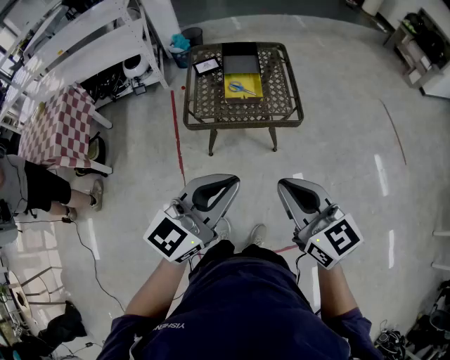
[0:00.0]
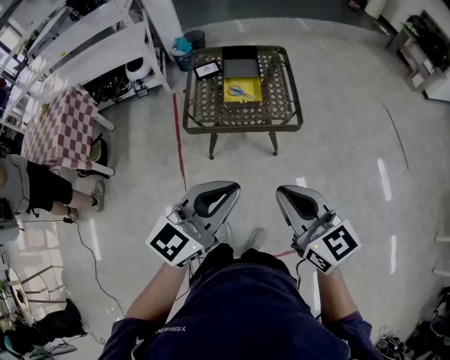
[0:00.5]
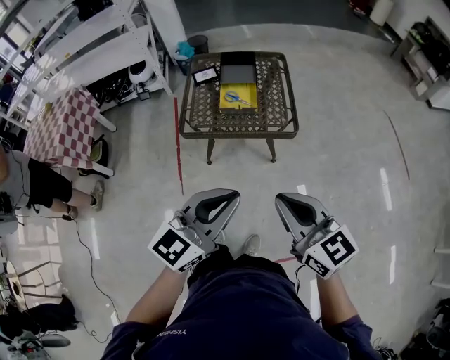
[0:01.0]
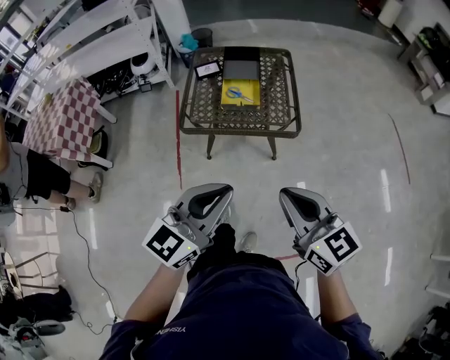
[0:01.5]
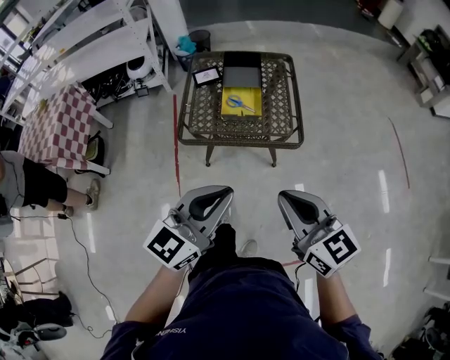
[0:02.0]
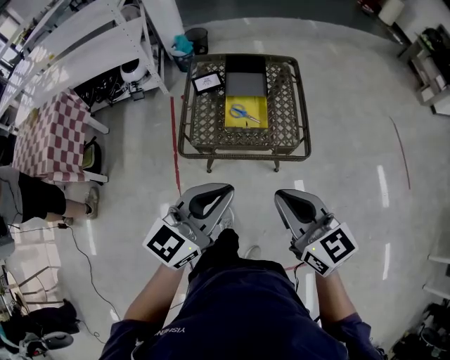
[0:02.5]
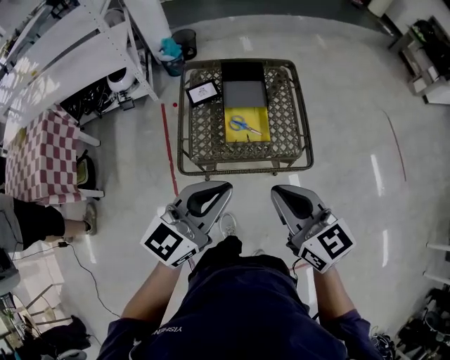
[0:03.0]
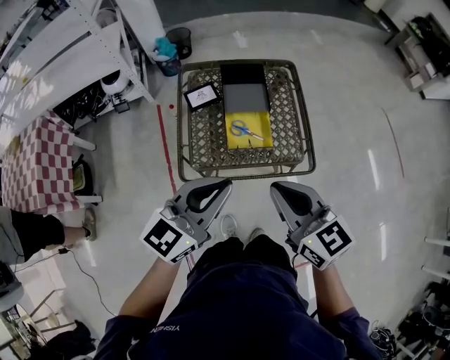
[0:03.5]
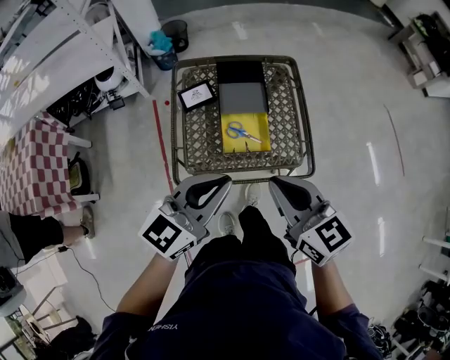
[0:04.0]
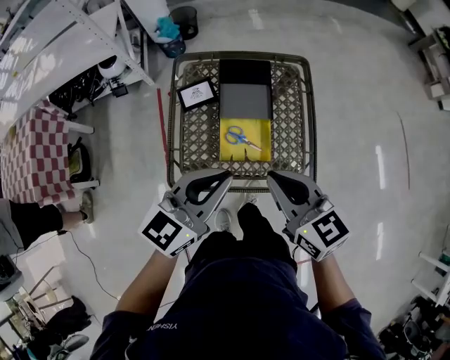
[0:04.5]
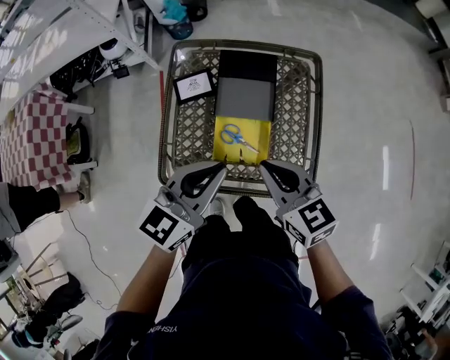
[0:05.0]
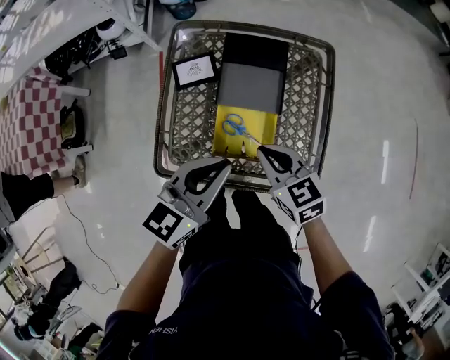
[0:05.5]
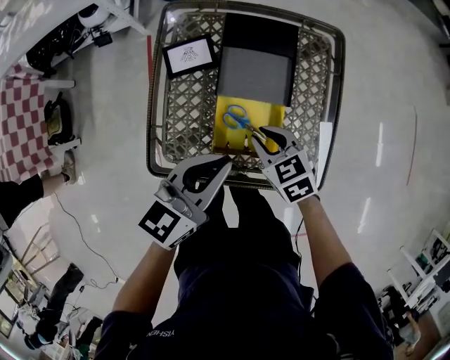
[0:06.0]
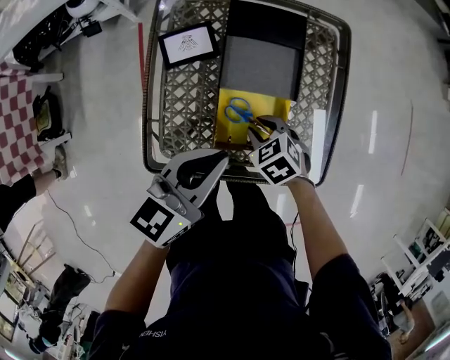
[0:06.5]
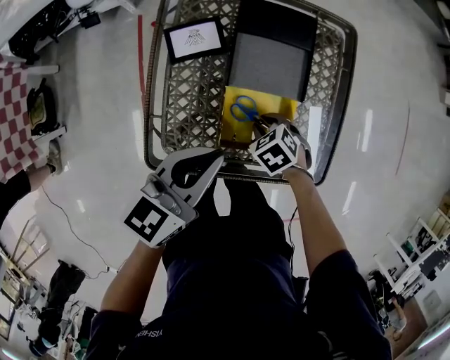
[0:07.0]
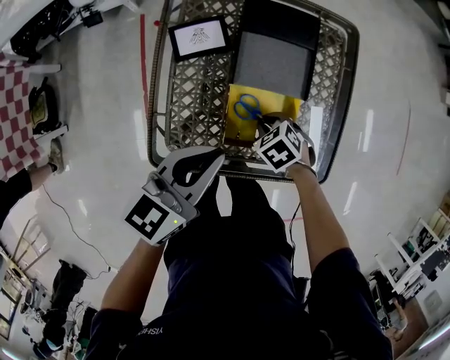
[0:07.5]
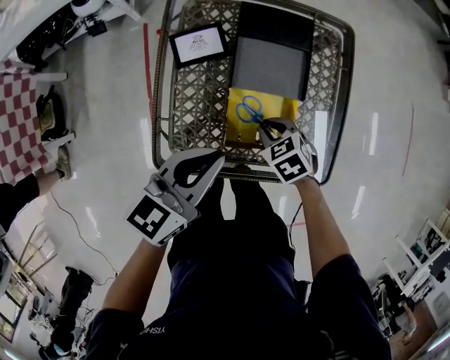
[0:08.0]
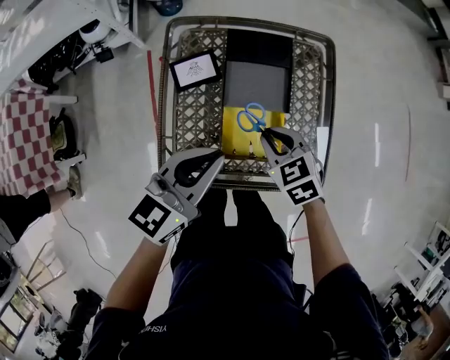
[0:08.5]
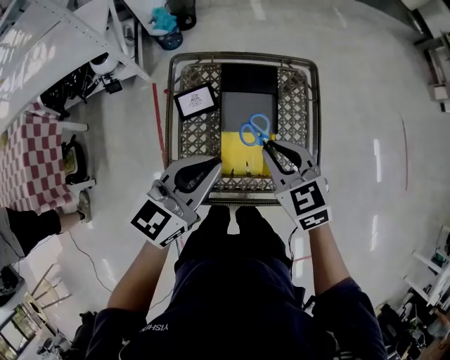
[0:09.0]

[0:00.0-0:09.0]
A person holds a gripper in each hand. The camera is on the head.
0:00.0 to 0:02.0: The left gripper travels forward by some 10 cm. The right gripper shifts approximately 10 cm forward and to the right.
0:02.0 to 0:04.5: The grippers both shift forward by roughly 35 cm.
0:04.5 to 0:07.0: The right gripper heads downward, covering approximately 40 cm, tilts its fingers about 60 degrees downward, and opens; the left gripper goes roughly 20 cm downward.
0:07.0 to 0:09.0: The right gripper travels upward by roughly 30 cm, and points its fingers some 40 degrees further upward. The left gripper shifts roughly 15 cm upward.

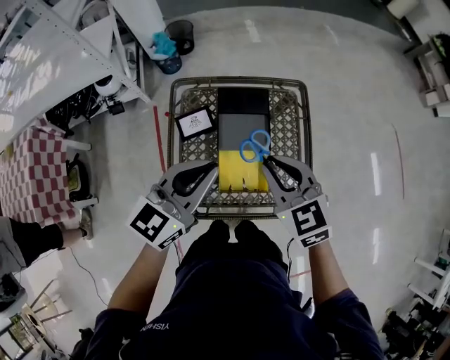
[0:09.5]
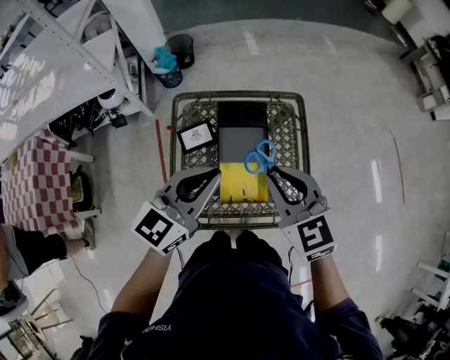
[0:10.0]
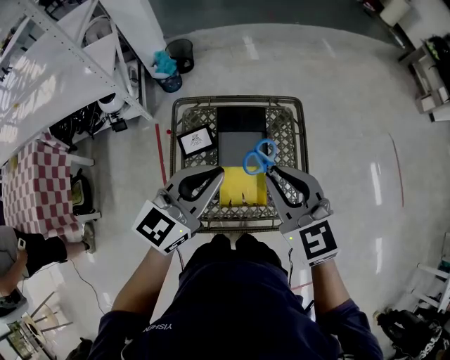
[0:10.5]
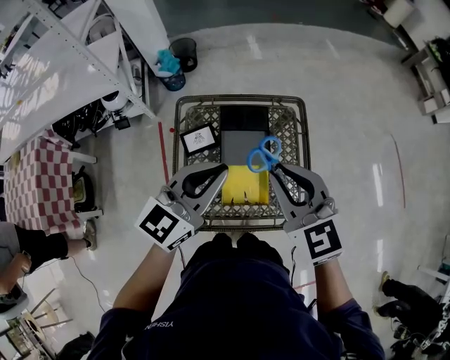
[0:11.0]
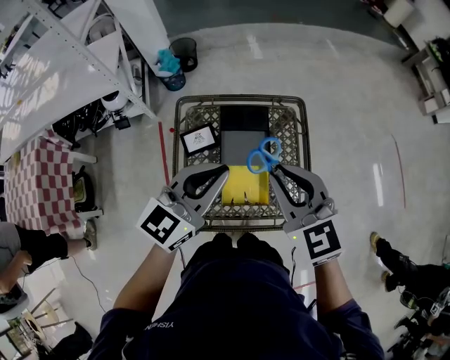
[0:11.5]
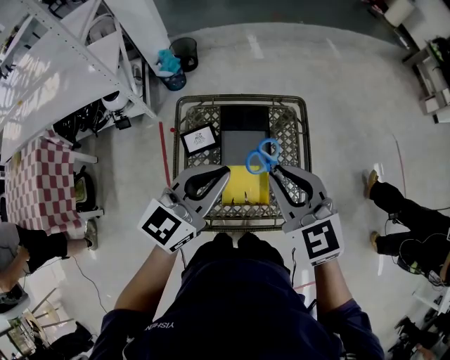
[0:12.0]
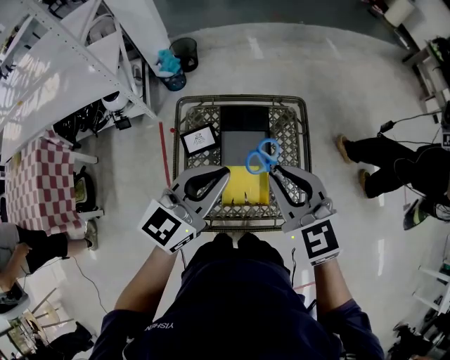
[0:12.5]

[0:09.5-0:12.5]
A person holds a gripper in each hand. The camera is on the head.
0:09.5 to 0:11.0: The right gripper goes approximately 10 cm upward.
0:11.0 to 0:12.5: Neither gripper changes place.

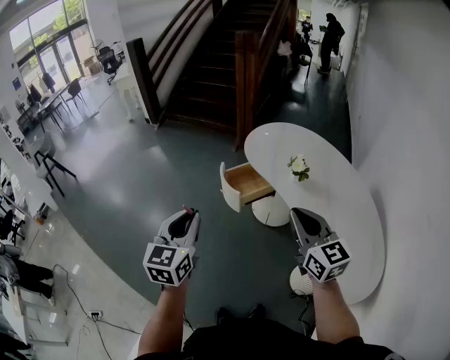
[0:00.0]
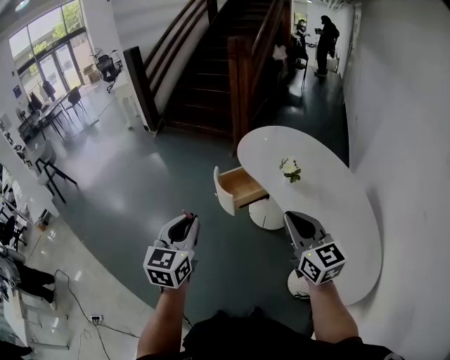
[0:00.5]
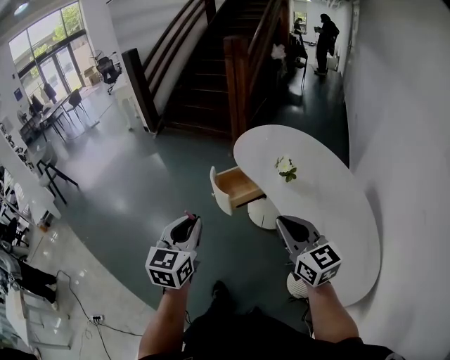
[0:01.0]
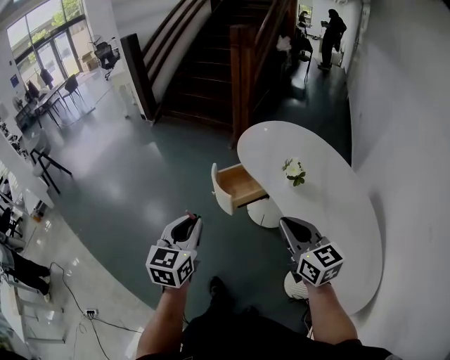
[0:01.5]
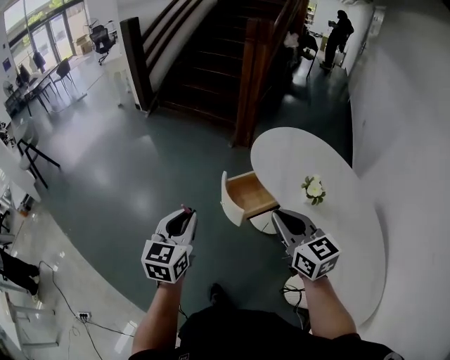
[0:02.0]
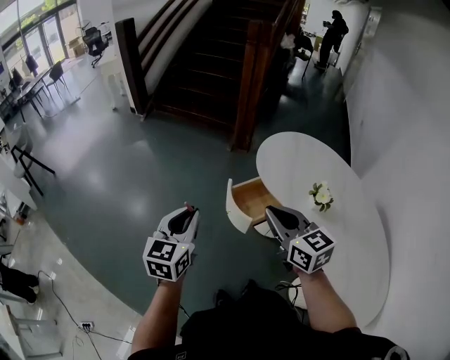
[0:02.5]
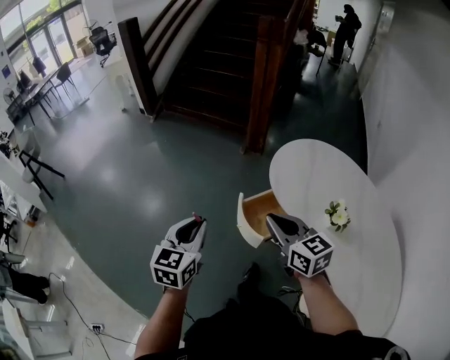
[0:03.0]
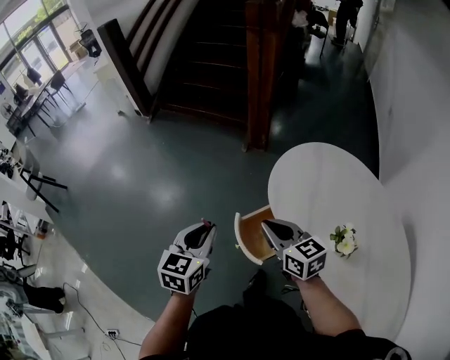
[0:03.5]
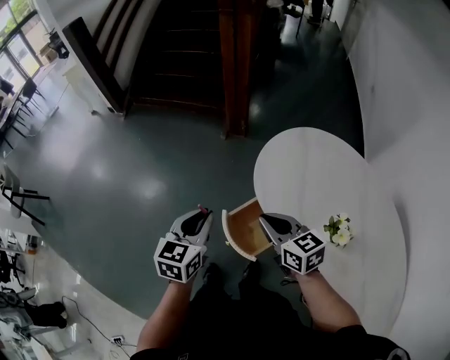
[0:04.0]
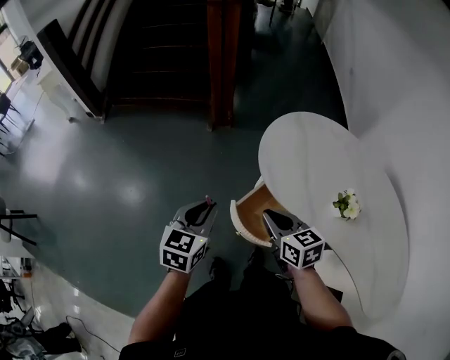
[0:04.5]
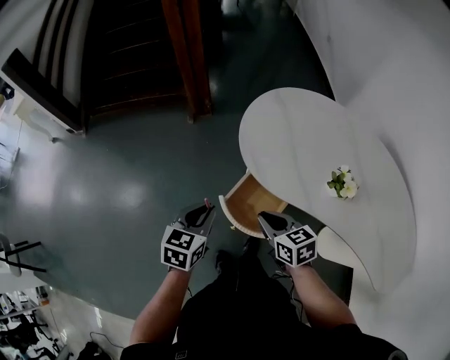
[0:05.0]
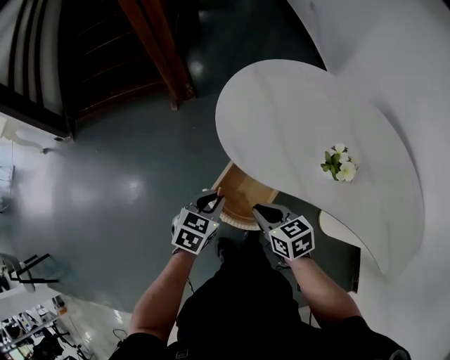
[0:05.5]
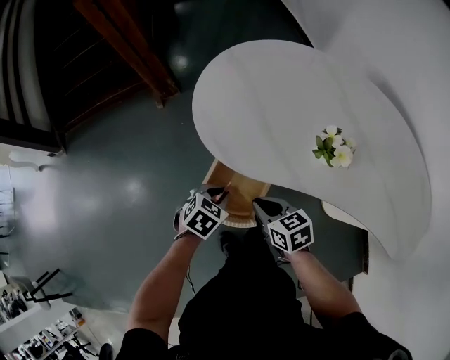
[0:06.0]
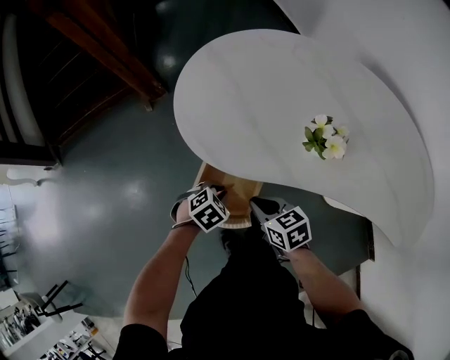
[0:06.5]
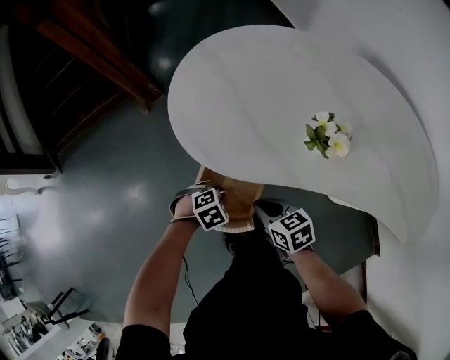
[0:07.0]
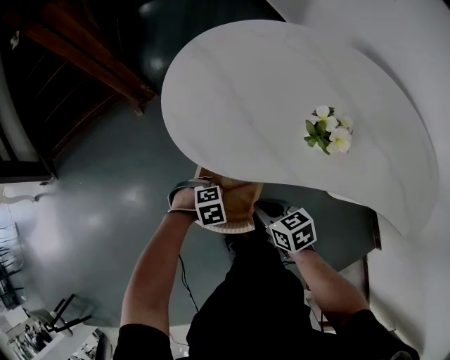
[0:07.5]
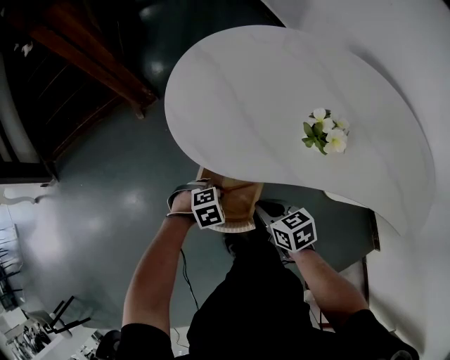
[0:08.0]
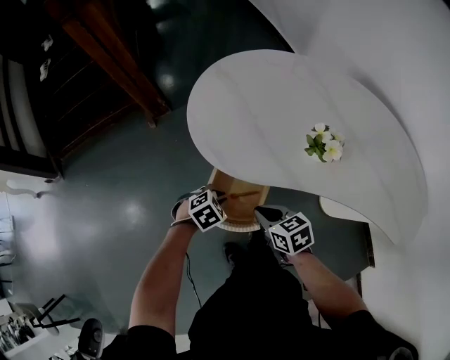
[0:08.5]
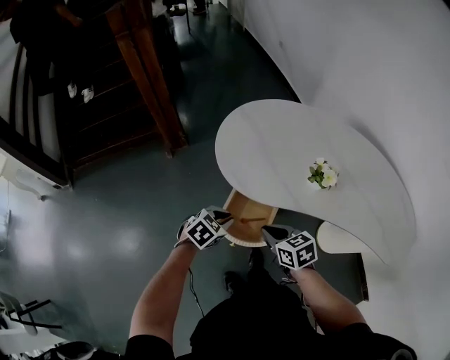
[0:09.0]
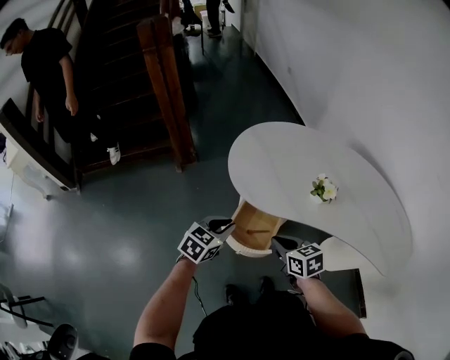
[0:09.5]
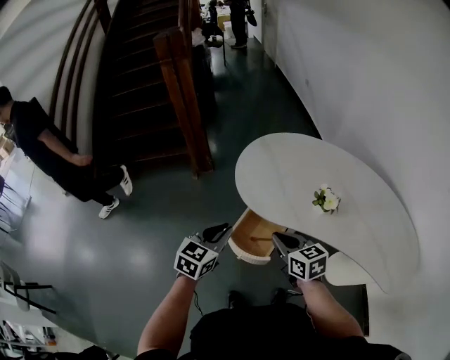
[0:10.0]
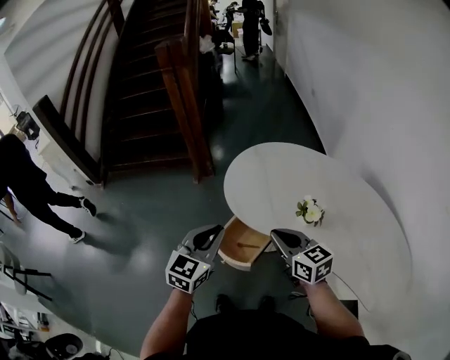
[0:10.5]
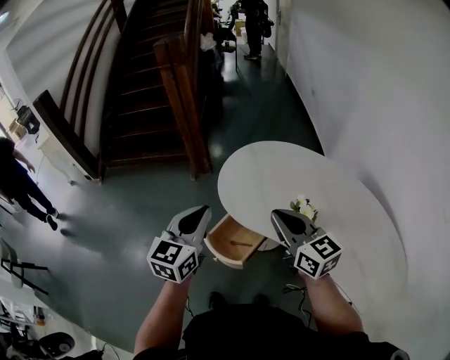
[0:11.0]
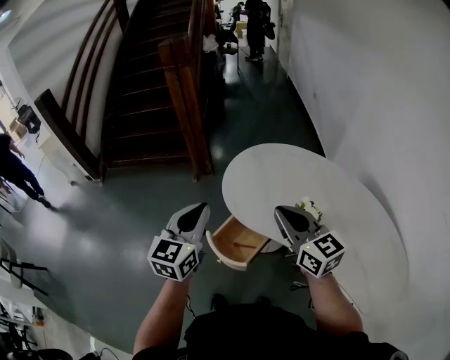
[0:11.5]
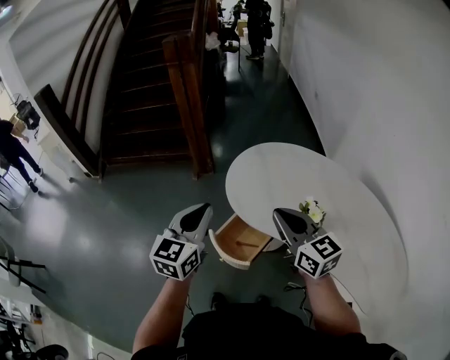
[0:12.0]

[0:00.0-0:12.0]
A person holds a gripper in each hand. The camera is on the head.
0:00.0 to 0:02.0: The left gripper goes roughly 15 cm forward, while the right gripper is displaced forward and to the left by about 20 cm.
0:02.0 to 0:04.0: The right gripper shifts roughly 30 cm forward and downward. The left gripper moves forward, about 30 cm.
0:04.0 to 0:06.0: Both grippers move downward, about 25 cm. The right gripper turns by approximately 30 degrees. Meanwhile the left gripper points its fingers about 30 degrees further downward.
0:06.0 to 0:08.0: The left gripper heads downward, covering some 10 cm, and twists roughly 40 degrees clockwise, seen from behind. The right gripper travels downward by approximately 5 cm.
0:08.0 to 0:10.0: Both grippers travel together upward, about 30 cm. The right gripper rotates approximately 20 degrees. Meanwhile the left gripper tilts its fingers approximately 50 degrees upward.
0:10.0 to 0:12.0: Both grippers travel together upward, approximately 15 cm. The right gripper swivels roughly 20 degrees. The left gripper turns by approximately 30 degrees.

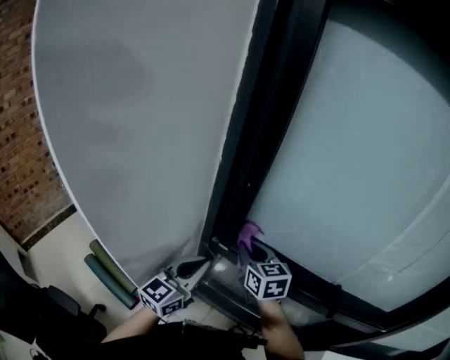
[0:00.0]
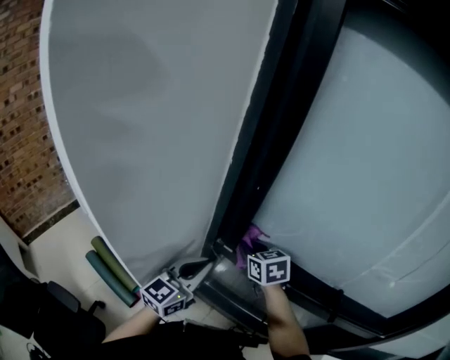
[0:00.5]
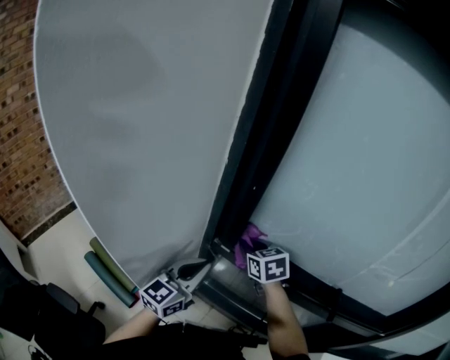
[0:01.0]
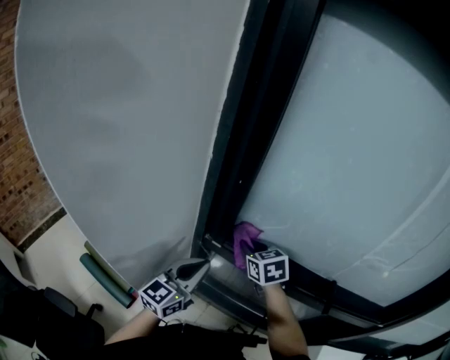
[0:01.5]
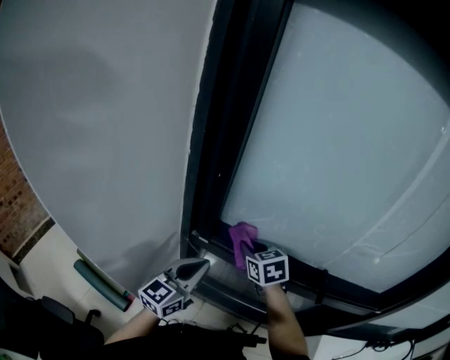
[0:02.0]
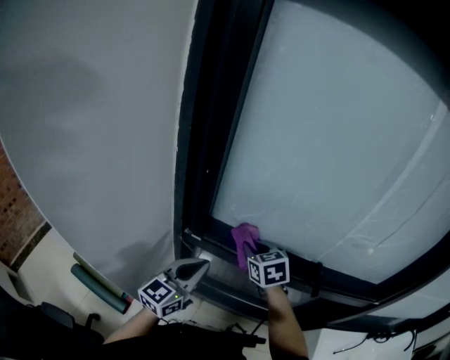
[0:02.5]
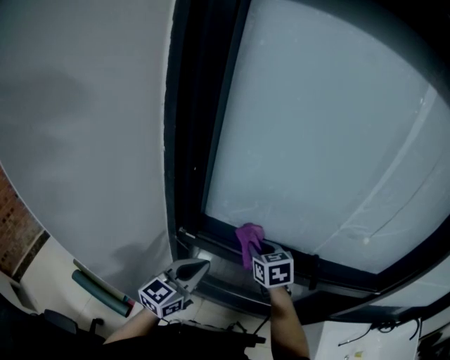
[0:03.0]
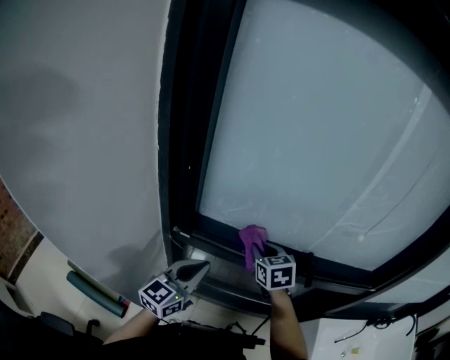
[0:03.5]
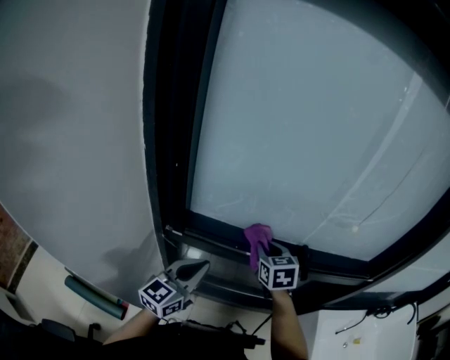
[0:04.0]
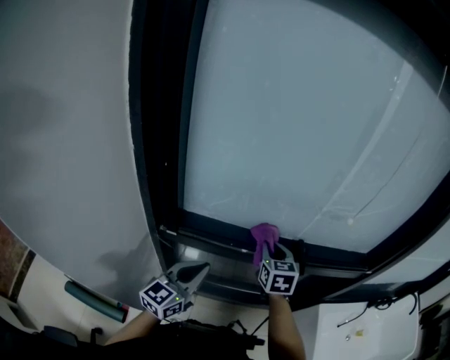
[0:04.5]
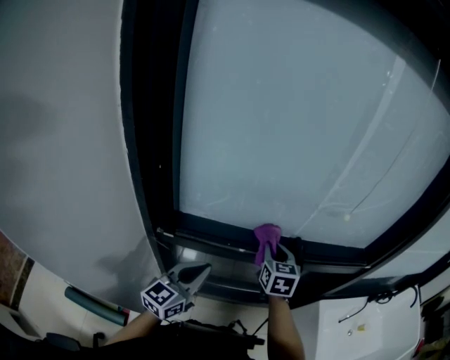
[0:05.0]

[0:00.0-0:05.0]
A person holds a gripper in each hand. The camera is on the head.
0:00.0 to 0:02.5: The left gripper shifts about 5 cm to the right; the right gripper goes approximately 10 cm to the right.
0:02.5 to 0:05.0: The left gripper shifts approximately 5 cm to the right. The right gripper is displaced to the right by approximately 15 cm, and rotates some 40 degrees.
